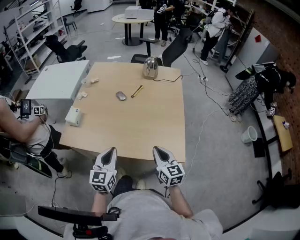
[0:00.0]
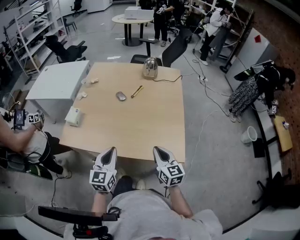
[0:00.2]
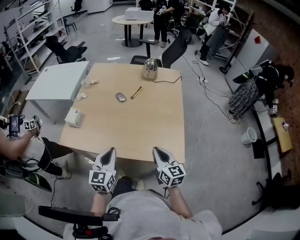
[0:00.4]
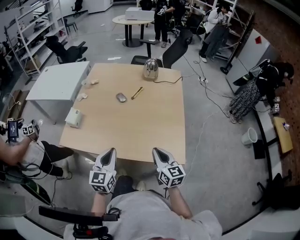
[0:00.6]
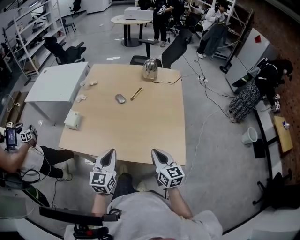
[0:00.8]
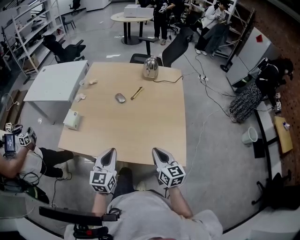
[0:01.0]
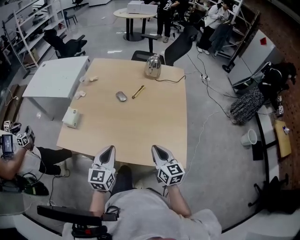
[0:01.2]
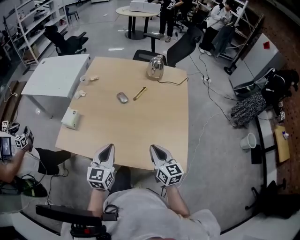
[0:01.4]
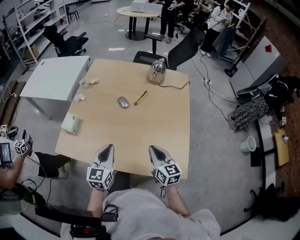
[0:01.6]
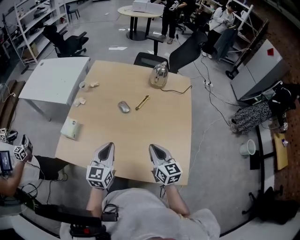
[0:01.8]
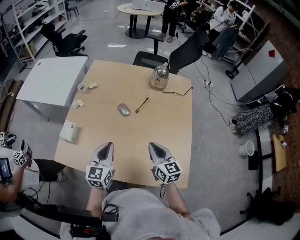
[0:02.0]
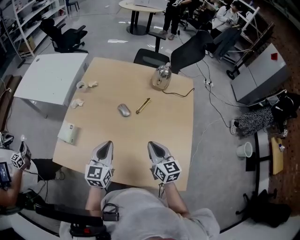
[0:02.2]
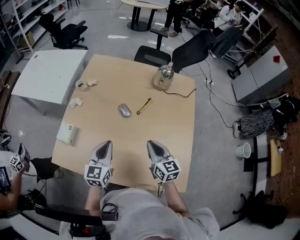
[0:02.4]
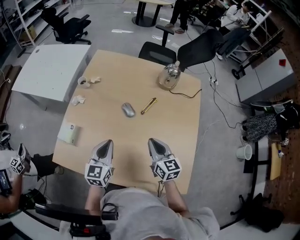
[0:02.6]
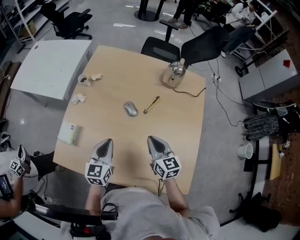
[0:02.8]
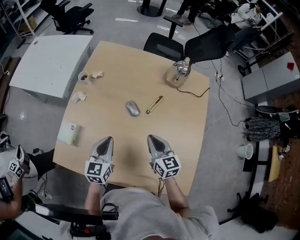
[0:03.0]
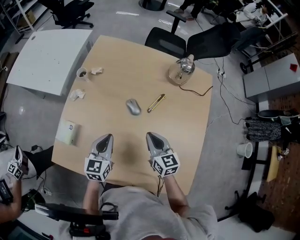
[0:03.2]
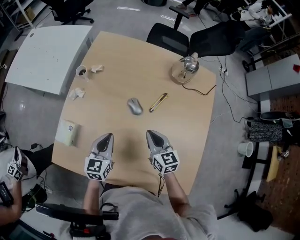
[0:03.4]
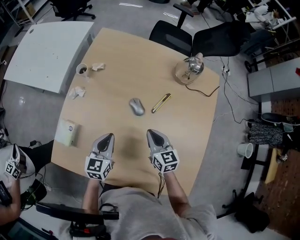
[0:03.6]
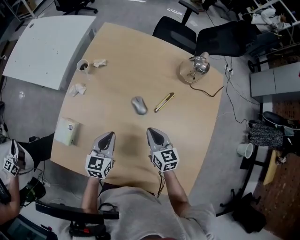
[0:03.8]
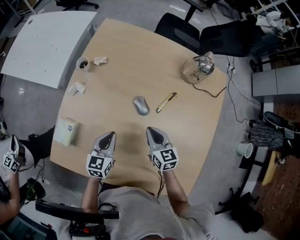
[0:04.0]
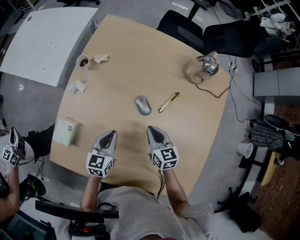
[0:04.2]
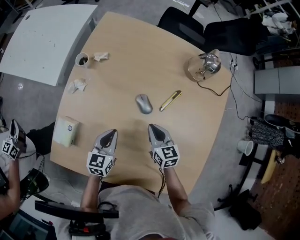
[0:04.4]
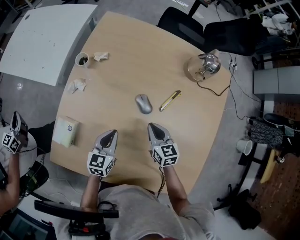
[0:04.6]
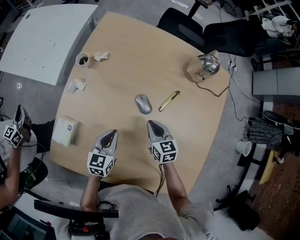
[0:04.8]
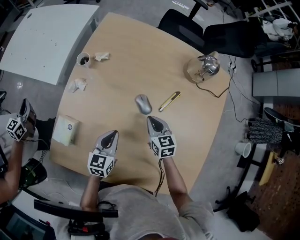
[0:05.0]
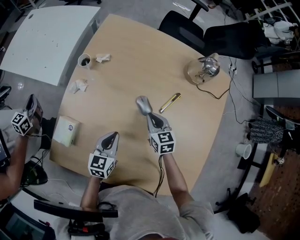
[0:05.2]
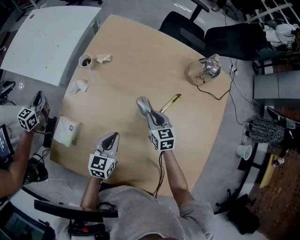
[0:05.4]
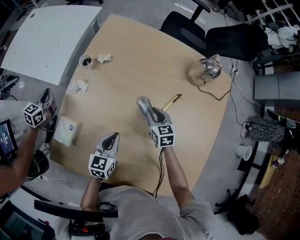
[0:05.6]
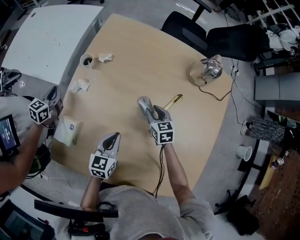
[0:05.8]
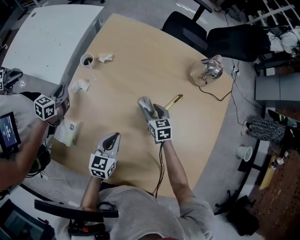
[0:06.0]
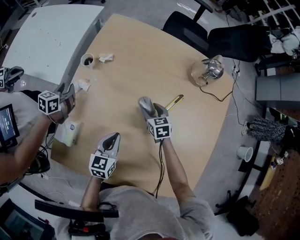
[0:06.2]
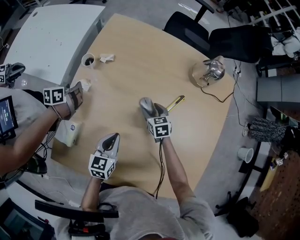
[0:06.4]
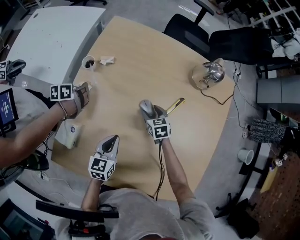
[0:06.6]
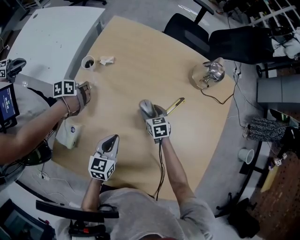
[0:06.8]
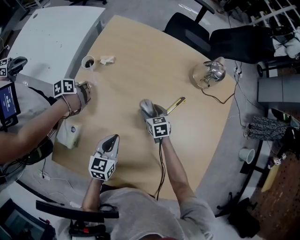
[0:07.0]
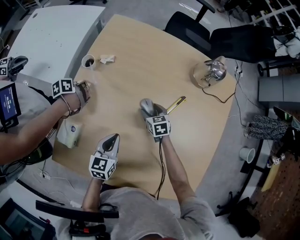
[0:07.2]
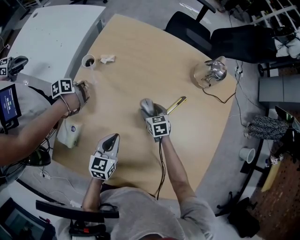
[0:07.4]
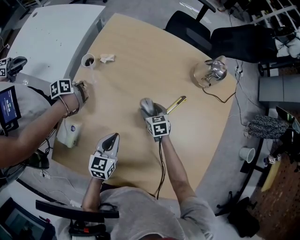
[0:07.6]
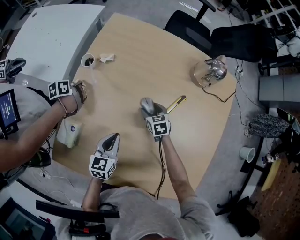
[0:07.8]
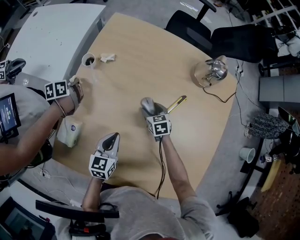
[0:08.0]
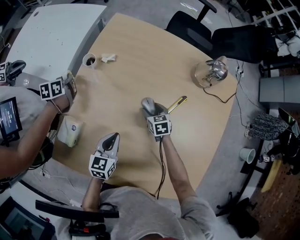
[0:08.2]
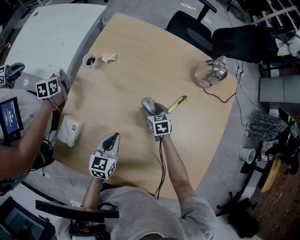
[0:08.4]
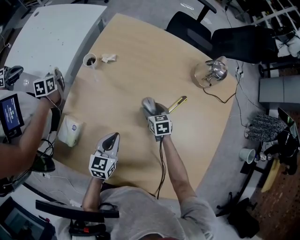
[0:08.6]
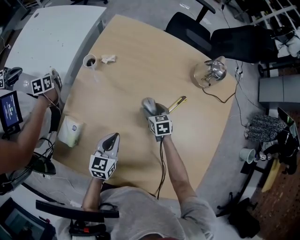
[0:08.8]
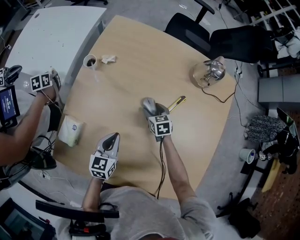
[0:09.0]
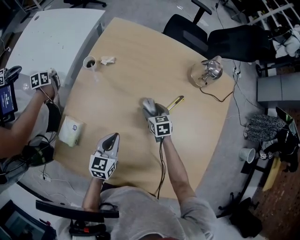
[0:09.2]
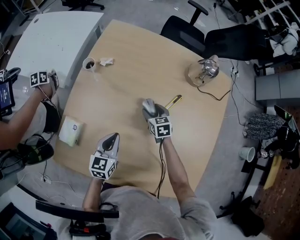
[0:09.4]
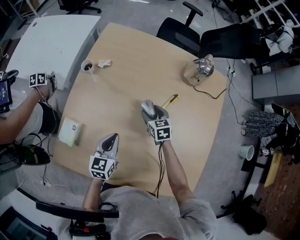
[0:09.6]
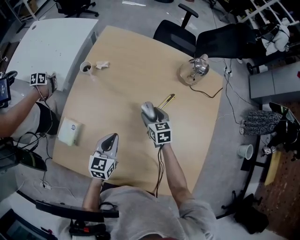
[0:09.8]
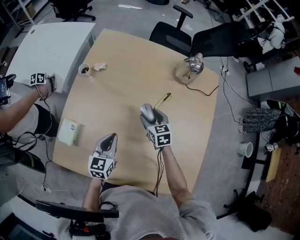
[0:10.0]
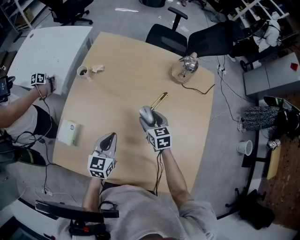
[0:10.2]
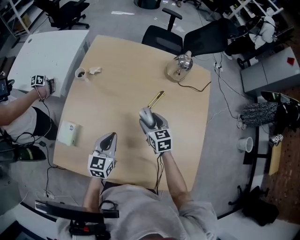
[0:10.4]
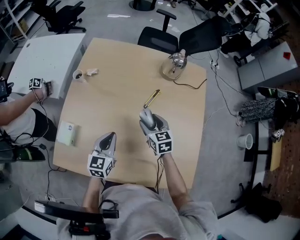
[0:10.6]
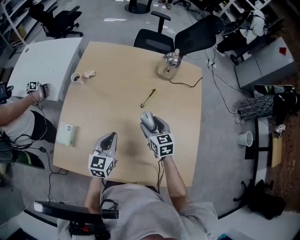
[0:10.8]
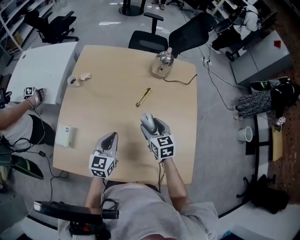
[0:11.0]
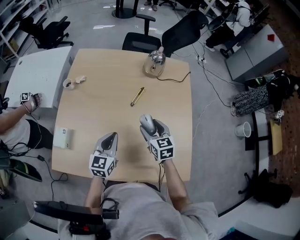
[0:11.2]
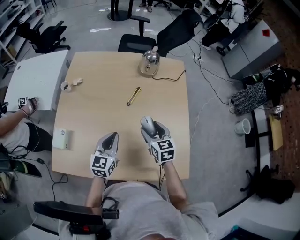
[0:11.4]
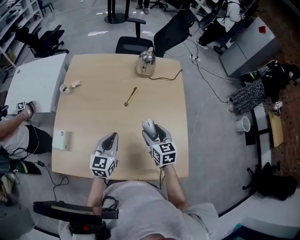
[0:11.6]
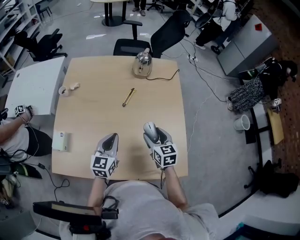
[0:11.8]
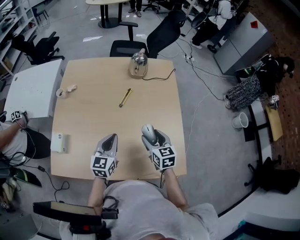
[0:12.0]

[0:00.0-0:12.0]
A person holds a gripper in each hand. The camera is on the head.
0:00.0 to 0:01.6: Both grippers travel together forward, roughly 15 cm.
0:01.6 to 0:03.0: The grippers both shift forward by some 20 cm.
0:03.0 to 0:04.4: The grippers both shift downward and forward by approximately 15 cm.
0:04.4 to 0:06.0: The right gripper heads forward and downward, covering some 10 cm, and opens.
0:06.0 to 0:09.0: There are only small adjustments of the grippers.
0:09.0 to 0:10.4: The right gripper moves upward and backward, approximately 20 cm; the left gripper shifts approximately 10 cm upward.
0:10.4 to 0:12.0: The left gripper is displaced to the right, backward and upward by about 15 cm, while the right gripper goes approximately 25 cm backward and to the right.

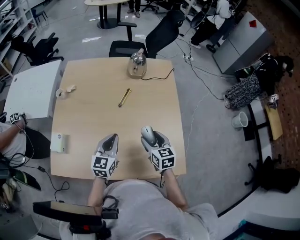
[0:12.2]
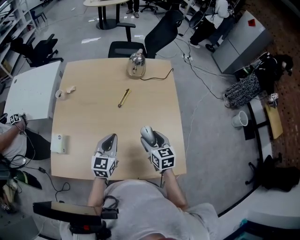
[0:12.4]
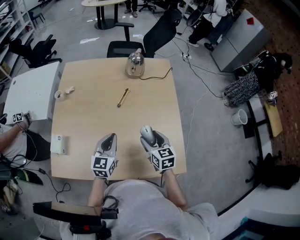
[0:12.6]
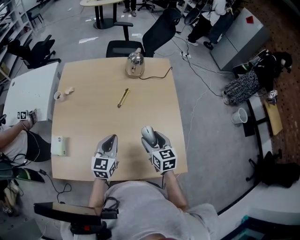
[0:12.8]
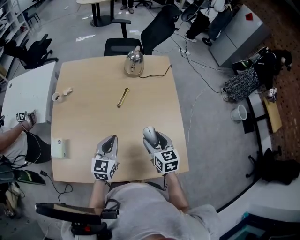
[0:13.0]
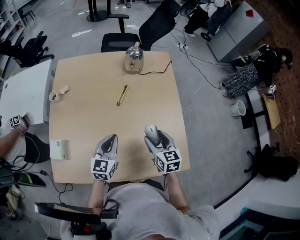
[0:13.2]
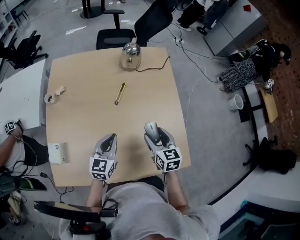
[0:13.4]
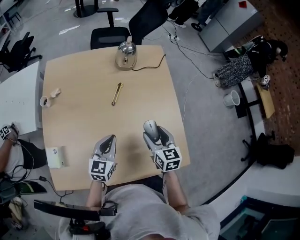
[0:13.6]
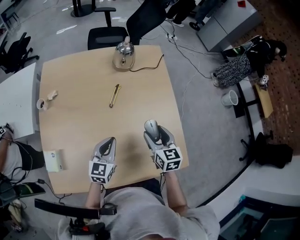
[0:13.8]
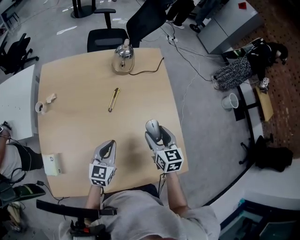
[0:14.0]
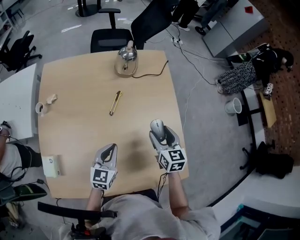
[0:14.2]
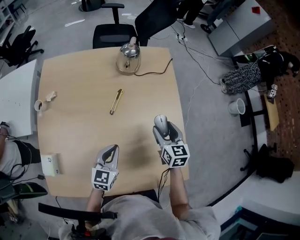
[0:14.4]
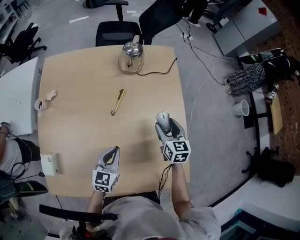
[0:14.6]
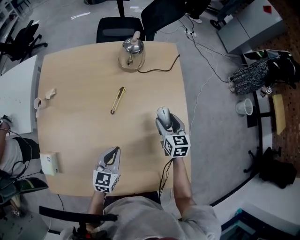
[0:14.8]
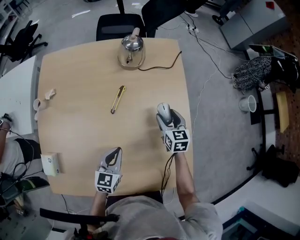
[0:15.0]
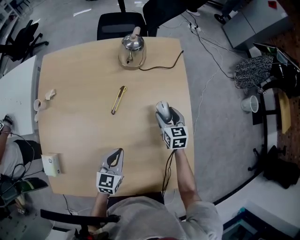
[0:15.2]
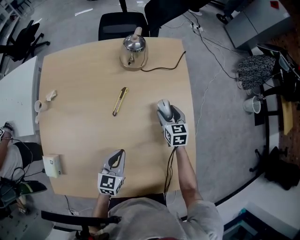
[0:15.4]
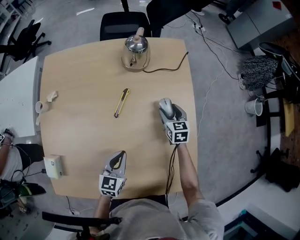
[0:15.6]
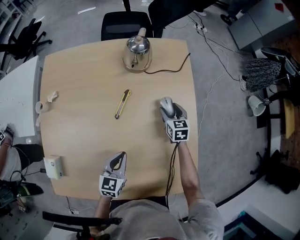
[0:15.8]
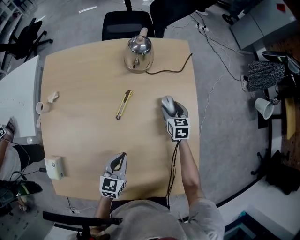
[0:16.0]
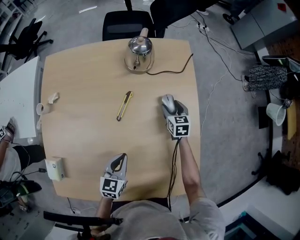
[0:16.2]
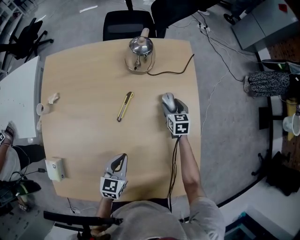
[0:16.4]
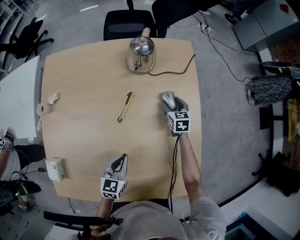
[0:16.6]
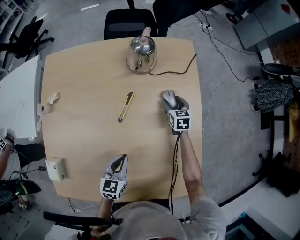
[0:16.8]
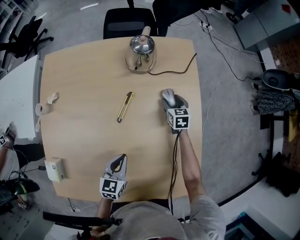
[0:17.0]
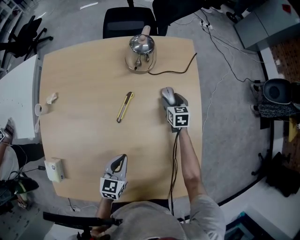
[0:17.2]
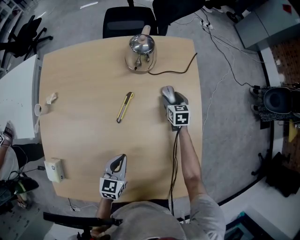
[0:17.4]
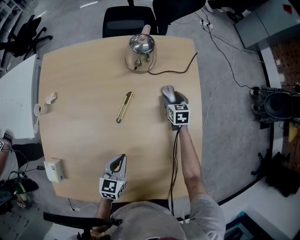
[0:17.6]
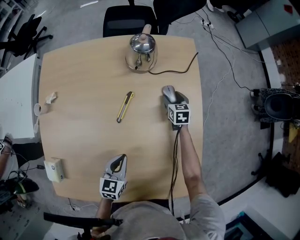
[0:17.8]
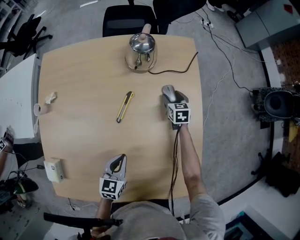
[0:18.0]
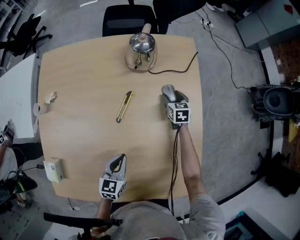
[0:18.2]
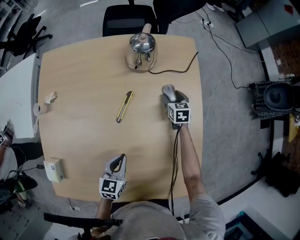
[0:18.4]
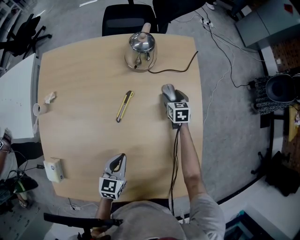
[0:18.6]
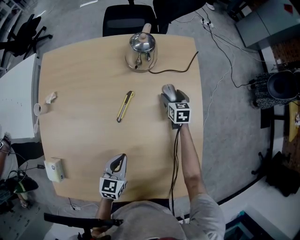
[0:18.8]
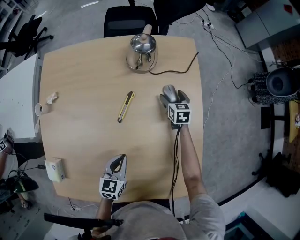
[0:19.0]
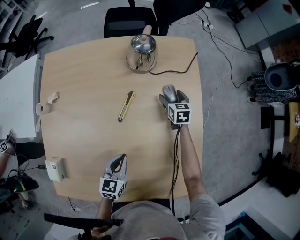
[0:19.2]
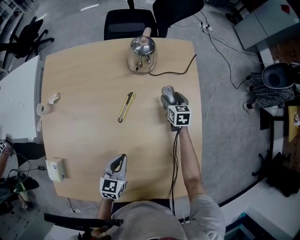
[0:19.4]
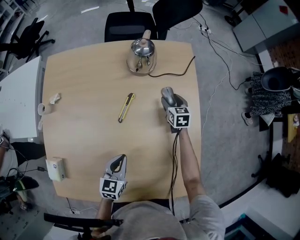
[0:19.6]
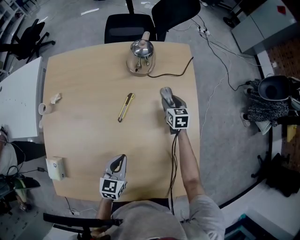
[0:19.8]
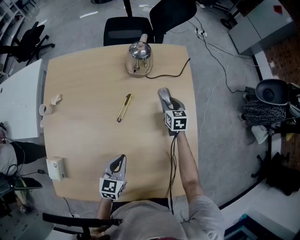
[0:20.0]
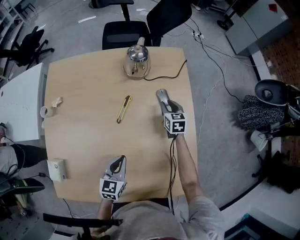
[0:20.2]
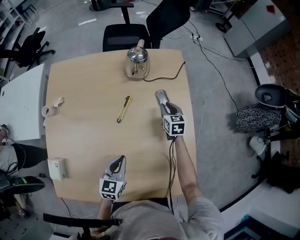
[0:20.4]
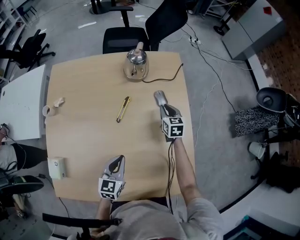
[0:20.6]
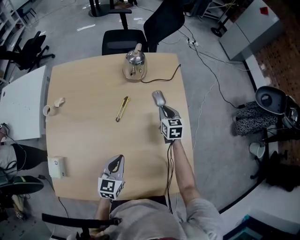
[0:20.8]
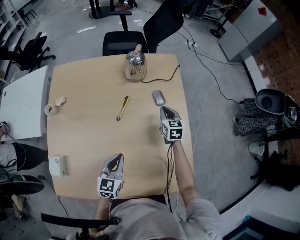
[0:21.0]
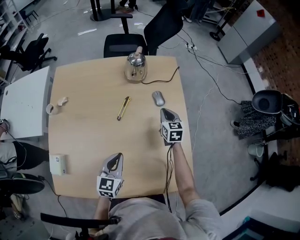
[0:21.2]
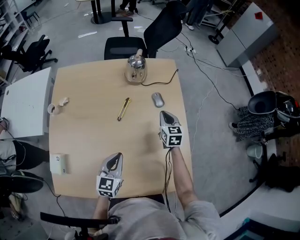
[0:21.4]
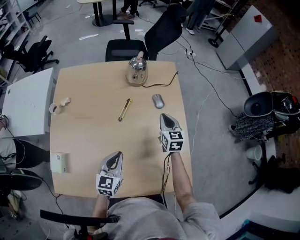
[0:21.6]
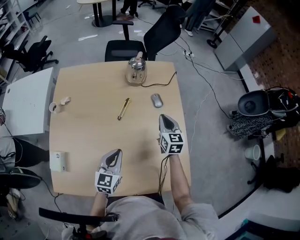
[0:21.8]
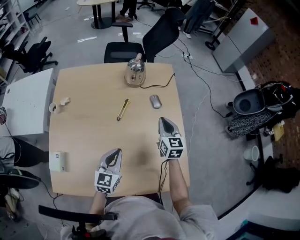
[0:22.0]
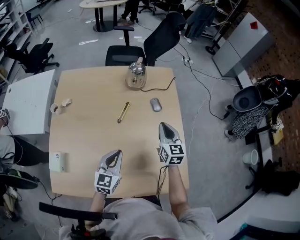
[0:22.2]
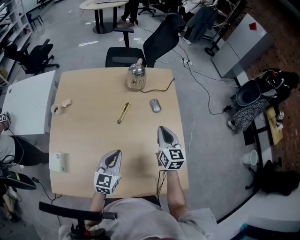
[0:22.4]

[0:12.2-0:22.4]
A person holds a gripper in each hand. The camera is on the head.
0:12.2 to 0:13.6: The left gripper shifts by about 5 cm.
0:13.6 to 0:15.2: The right gripper moves forward and downward, approximately 25 cm; the left gripper goes about 10 cm downward, to the right and forward.
0:15.2 to 0:16.6: The right gripper goes approximately 15 cm forward and downward.
0:16.6 to 0:19.4: There are only small adjustments of the grippers.
0:19.4 to 0:21.0: The right gripper heads upward and backward, covering roughly 15 cm, and closes its fingers. The left gripper is displaced upward by some 10 cm.
0:21.0 to 0:22.4: The left gripper goes about 5 cm upward. Meanwhile the right gripper shifts approximately 20 cm backward and upward.

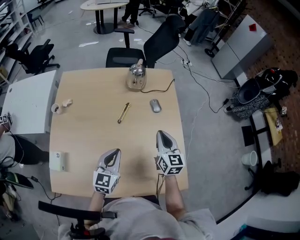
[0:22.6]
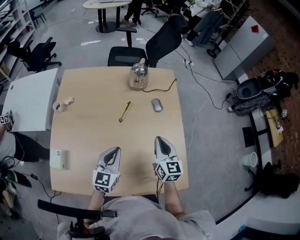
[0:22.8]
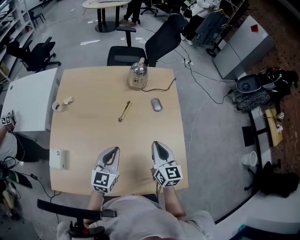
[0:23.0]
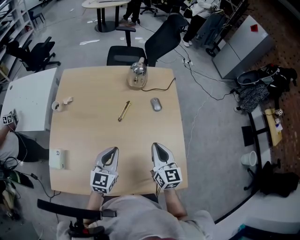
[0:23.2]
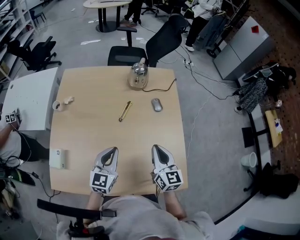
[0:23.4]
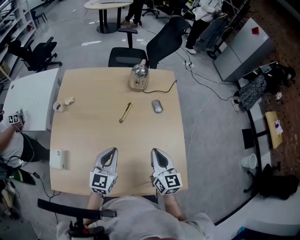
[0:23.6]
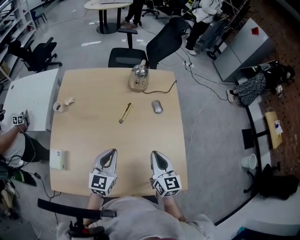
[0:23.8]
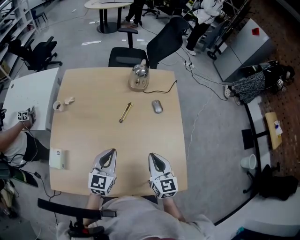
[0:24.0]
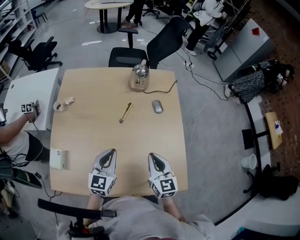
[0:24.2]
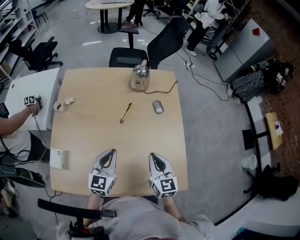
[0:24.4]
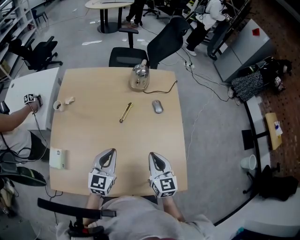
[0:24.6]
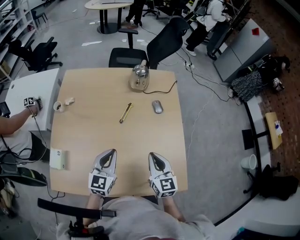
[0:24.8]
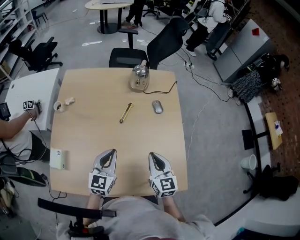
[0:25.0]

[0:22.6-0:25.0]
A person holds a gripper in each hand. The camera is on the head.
0:22.6 to 0:23.8: The right gripper goes approximately 10 cm backward.
0:23.8 to 0:25.0: The grippers make only small movements.
